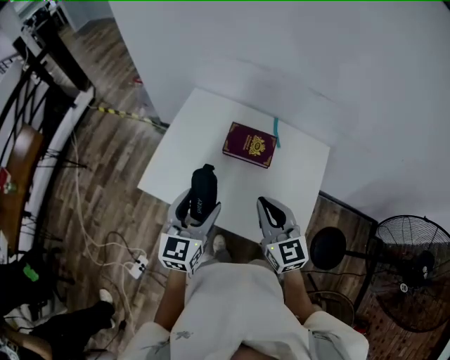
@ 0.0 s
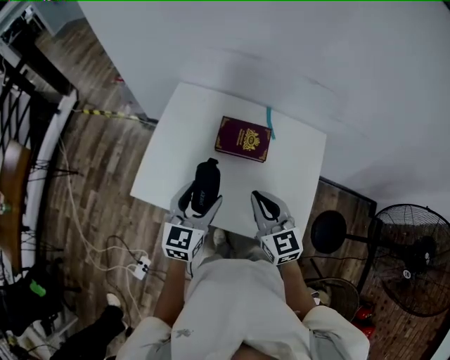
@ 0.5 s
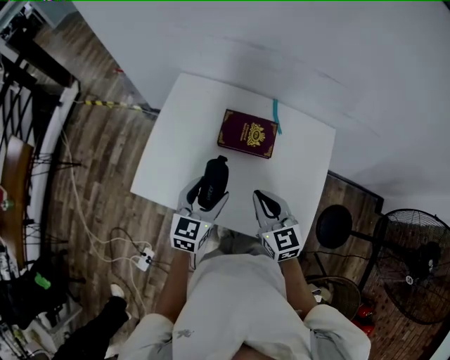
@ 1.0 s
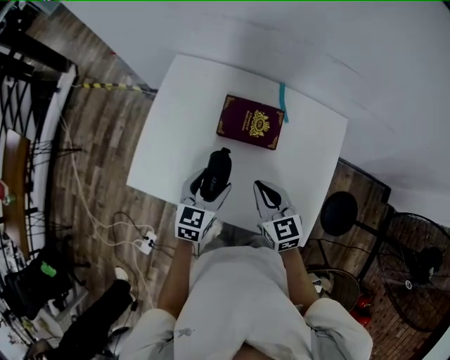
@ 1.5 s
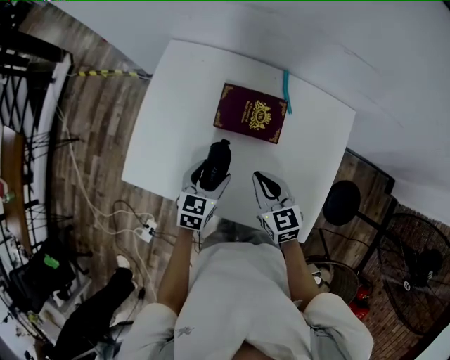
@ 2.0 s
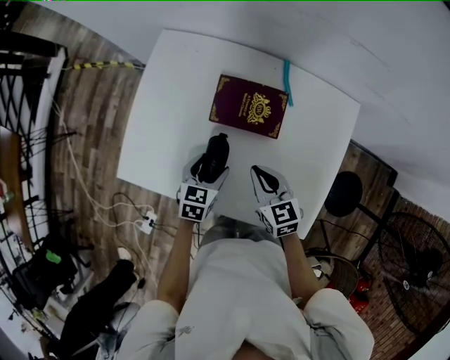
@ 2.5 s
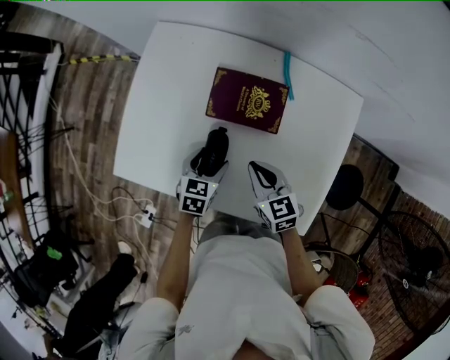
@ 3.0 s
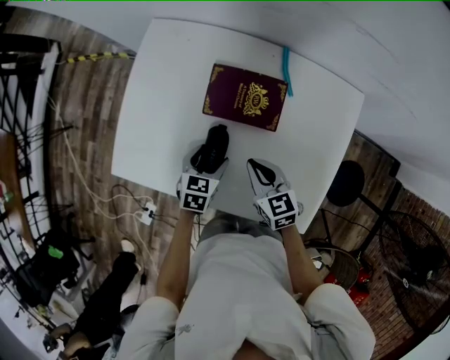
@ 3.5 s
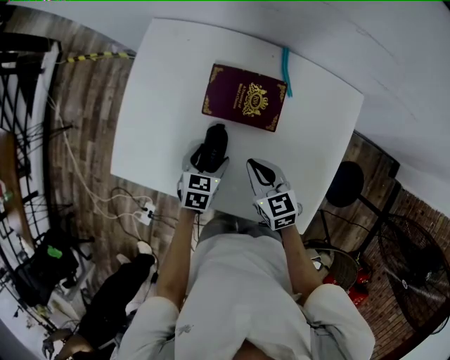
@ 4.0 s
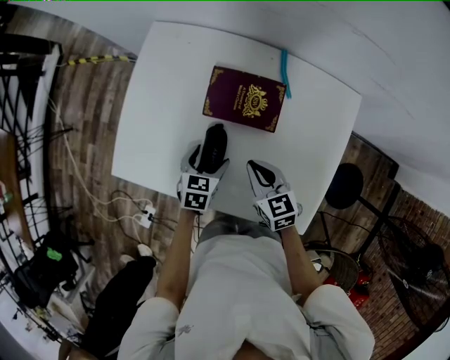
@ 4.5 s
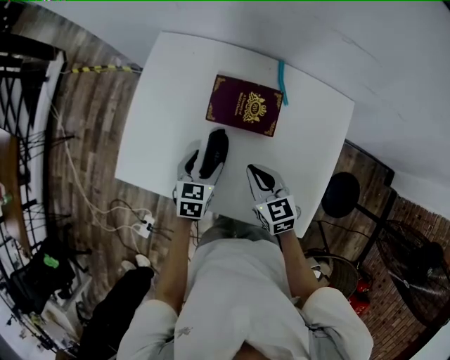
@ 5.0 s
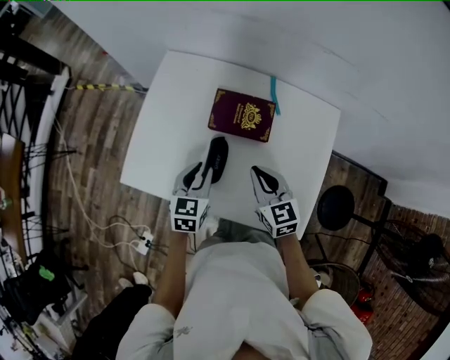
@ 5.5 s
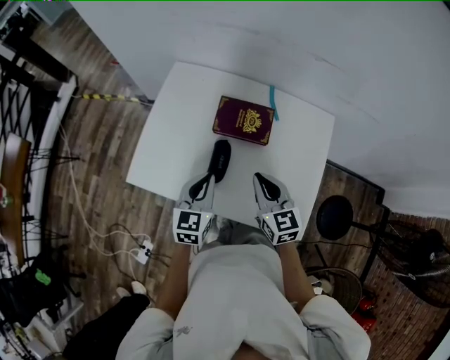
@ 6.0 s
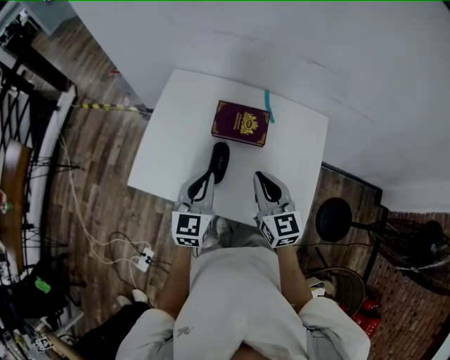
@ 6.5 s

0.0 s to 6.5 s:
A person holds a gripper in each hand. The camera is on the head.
0.0 to 2.0 s: Both grippers move downward and forward, some 20 cm. The right gripper changes its angle by approximately 20 degrees; the left gripper rotates roughly 30 degrees.
2.0 to 4.5 s: Both grippers travel together downward, roughly 5 cm.
4.5 to 6.5 s: The two grippers go some 20 cm upward. The left gripper points its fingers about 40 degrees further upward, and closes up, while the right gripper rotates about 30 degrees.

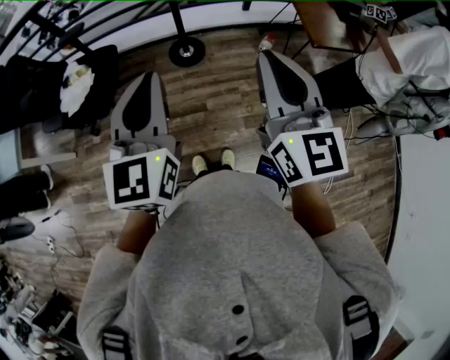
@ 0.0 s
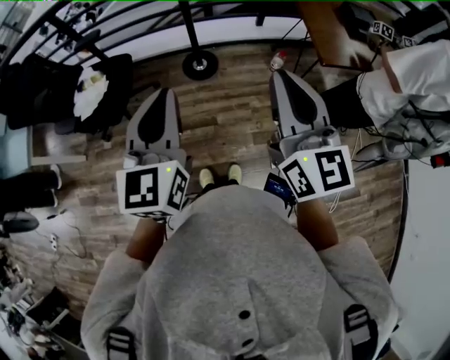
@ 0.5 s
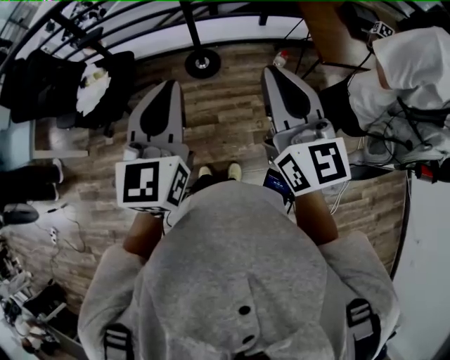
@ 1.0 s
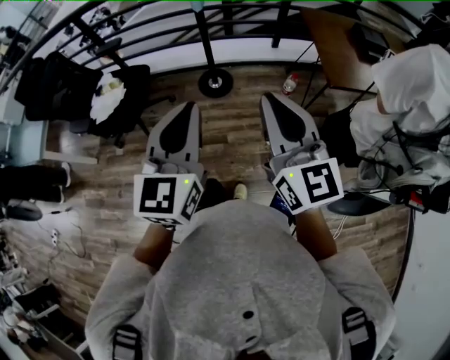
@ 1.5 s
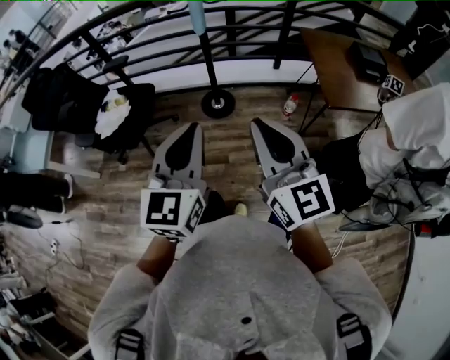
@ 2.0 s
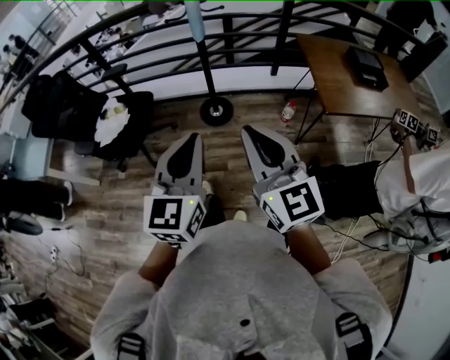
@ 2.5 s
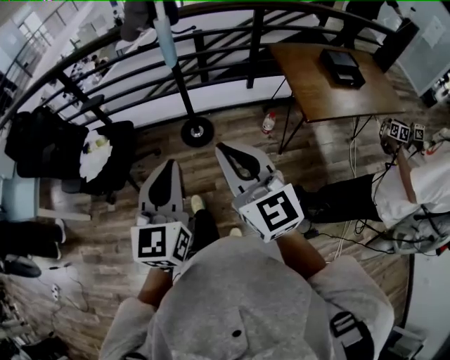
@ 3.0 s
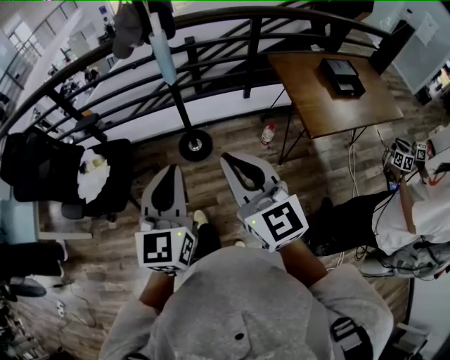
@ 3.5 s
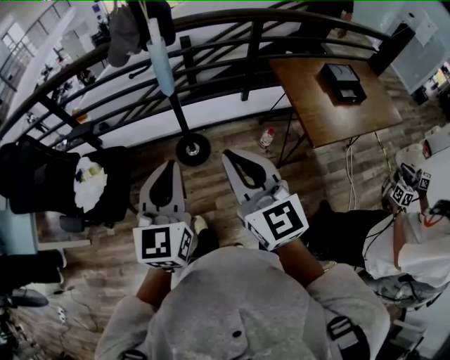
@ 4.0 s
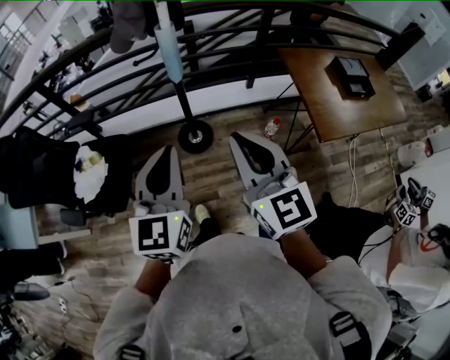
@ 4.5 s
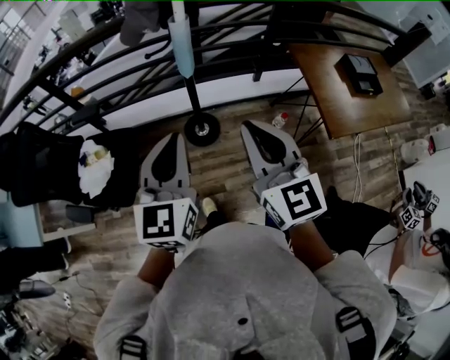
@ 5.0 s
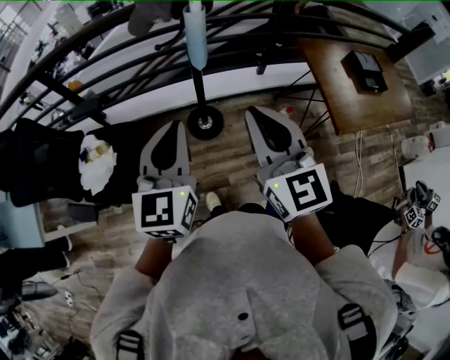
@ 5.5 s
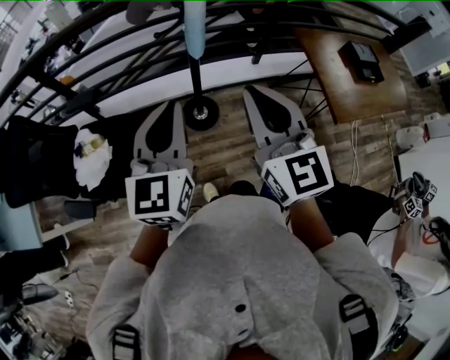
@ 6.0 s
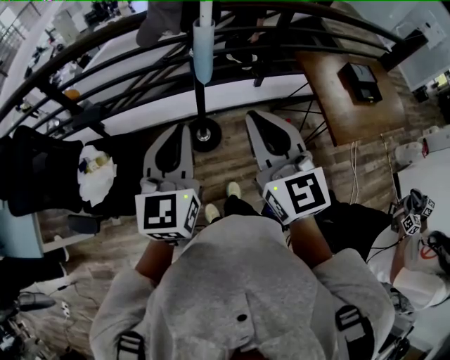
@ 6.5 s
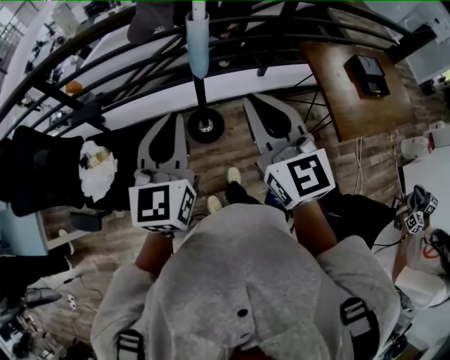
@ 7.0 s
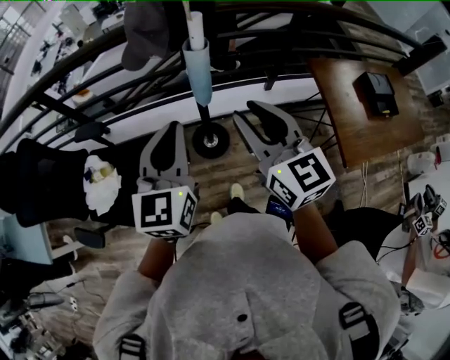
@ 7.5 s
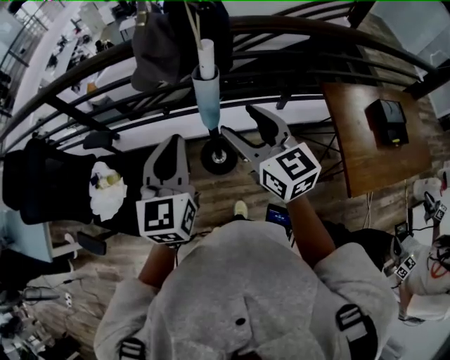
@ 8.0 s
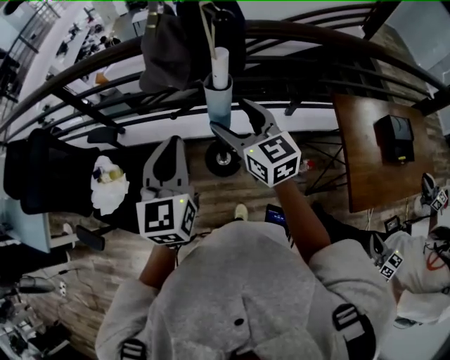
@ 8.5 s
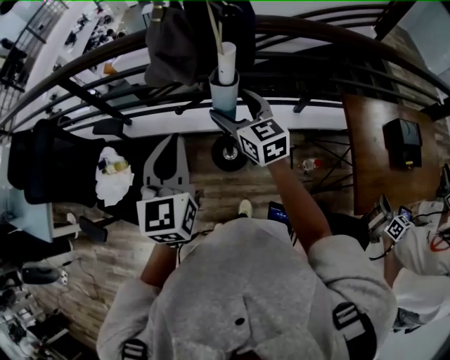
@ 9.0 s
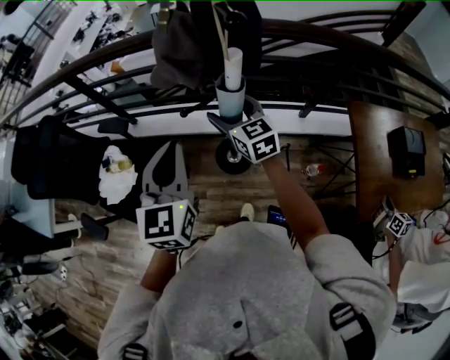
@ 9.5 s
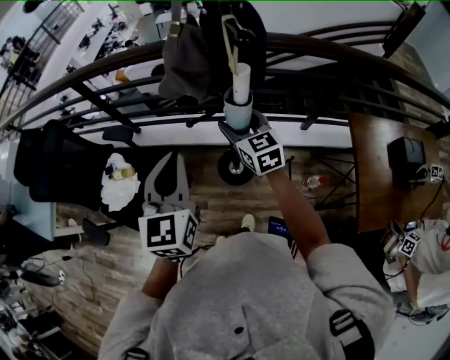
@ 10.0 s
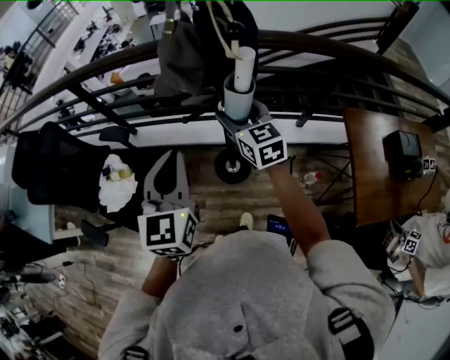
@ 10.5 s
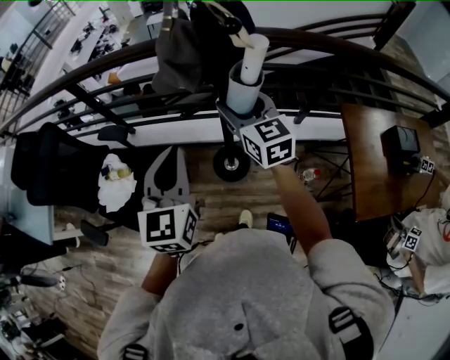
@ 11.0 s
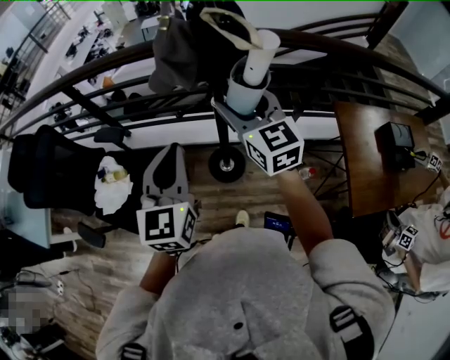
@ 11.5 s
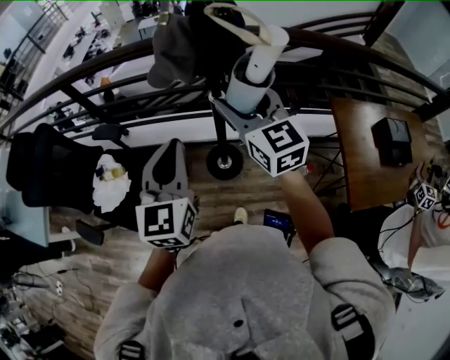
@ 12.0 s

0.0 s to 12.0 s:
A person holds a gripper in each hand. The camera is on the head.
0.0 to 2.0 s: The left gripper travels to the right by about 10 cm.
2.0 to 4.0 s: The grippers both shift forward by approximately 25 cm.
4.0 to 6.0 s: Both grippers move forward and to the left, approximately 20 cm.
6.0 to 8.0 s: Both grippers travel together forward, roughly 25 cm. The right gripper rotates about 20 degrees, and opens up.
8.0 to 10.0 s: The right gripper moves forward and downward, about 20 cm.
10.0 to 12.0 s: The left gripper moves about 5 cm; the right gripper travels upward and backward by approximately 20 cm.

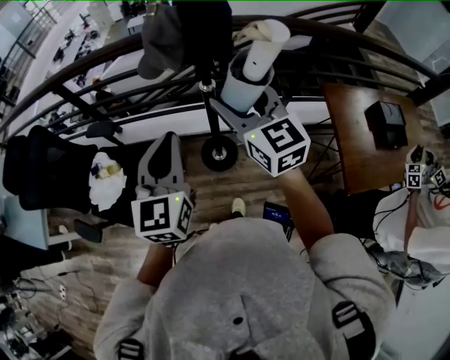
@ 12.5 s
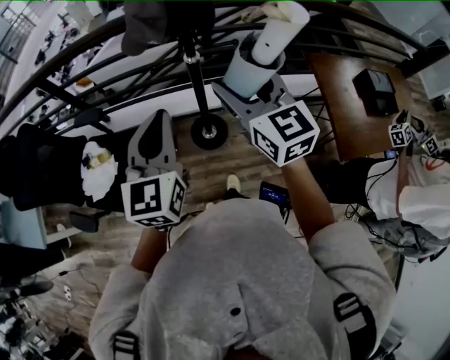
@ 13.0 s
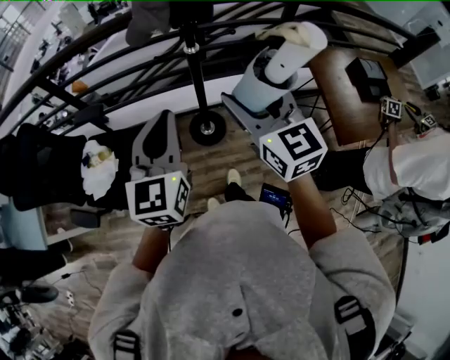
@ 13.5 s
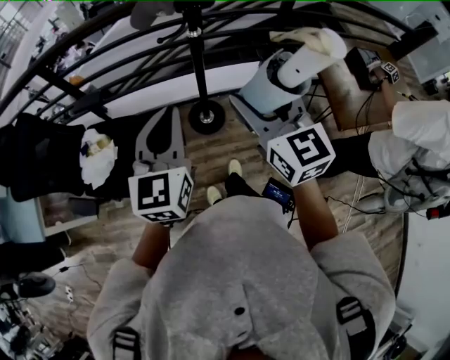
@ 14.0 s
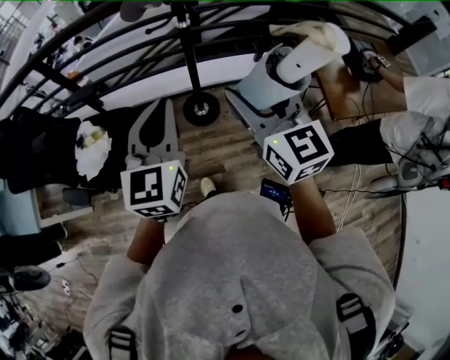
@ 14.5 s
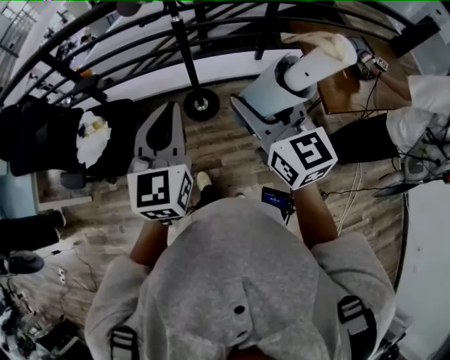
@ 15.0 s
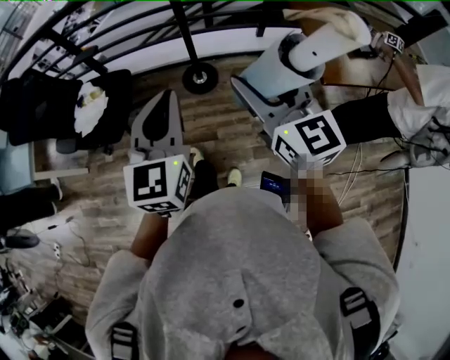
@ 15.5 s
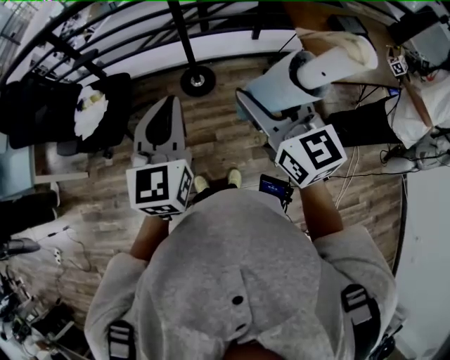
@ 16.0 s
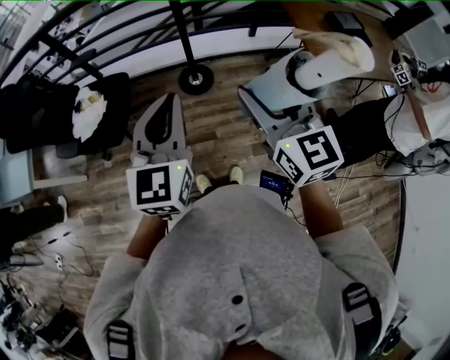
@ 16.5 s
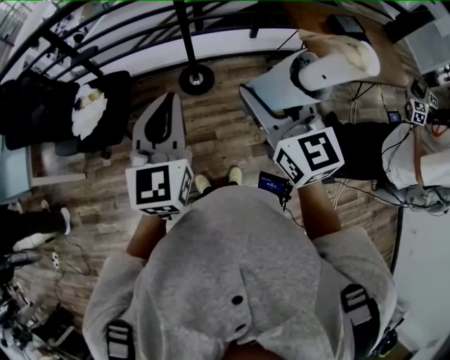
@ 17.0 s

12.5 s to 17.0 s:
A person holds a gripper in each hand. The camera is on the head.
12.5 to 14.5 s: The two grippers go roughly 25 cm backward.
14.5 to 17.0 s: The two grippers go approximately 25 cm backward.

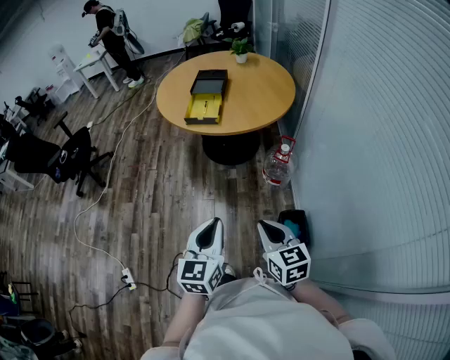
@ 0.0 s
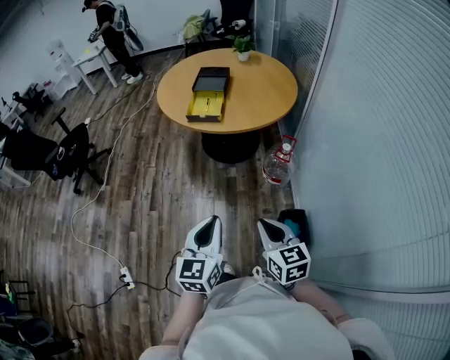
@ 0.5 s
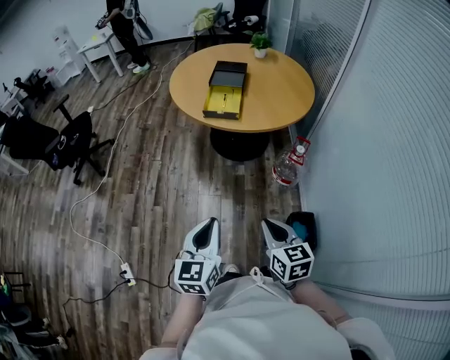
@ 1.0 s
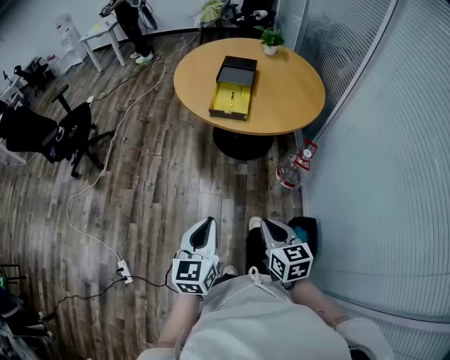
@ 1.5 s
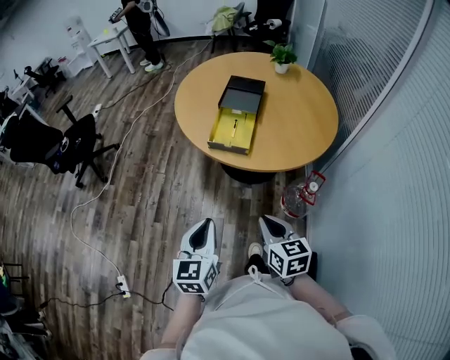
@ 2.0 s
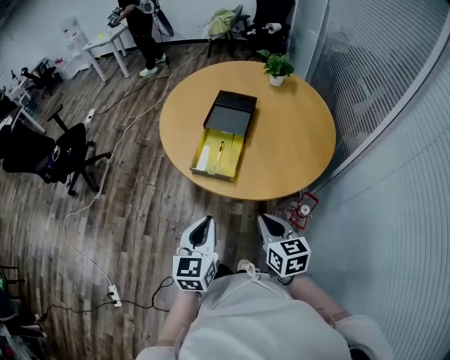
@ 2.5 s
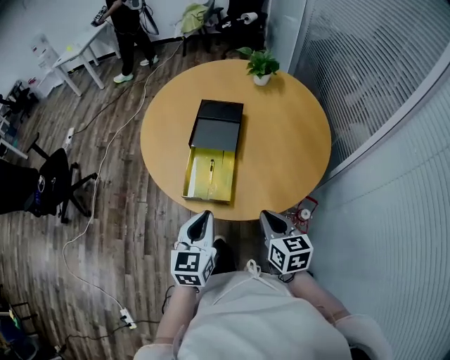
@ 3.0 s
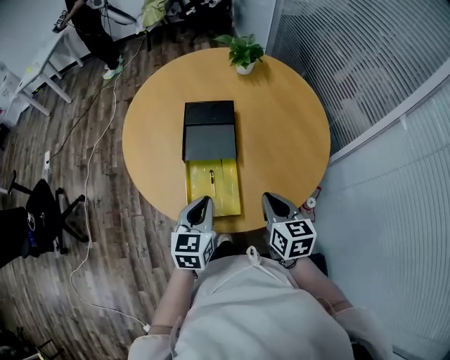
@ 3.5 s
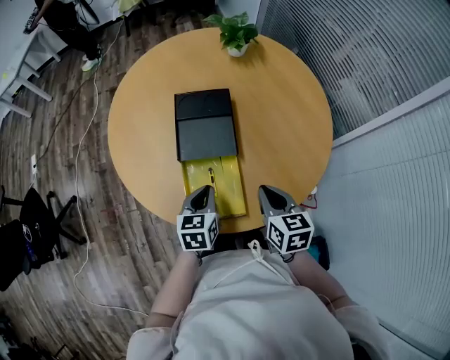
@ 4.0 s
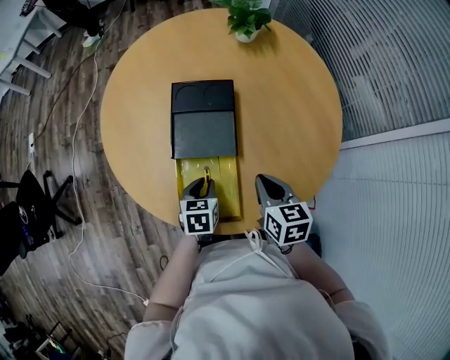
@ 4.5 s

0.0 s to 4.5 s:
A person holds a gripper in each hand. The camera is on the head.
0.0 to 2.0 s: The grippers both shift forward by roughly 30 cm.
2.0 to 4.5 s: The two grippers travel together, some 50 cm. The left gripper angles its fingers downward, by about 40 degrees. Meanwhile the right gripper changes its angle by roughly 20 degrees.
